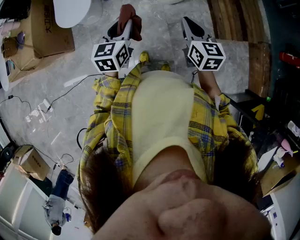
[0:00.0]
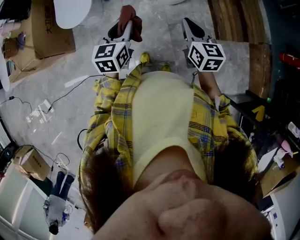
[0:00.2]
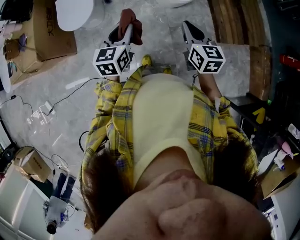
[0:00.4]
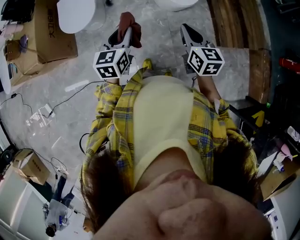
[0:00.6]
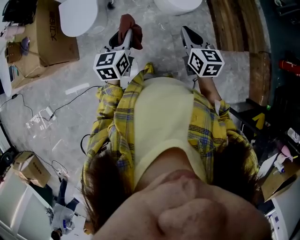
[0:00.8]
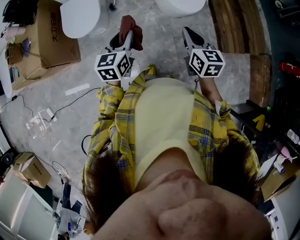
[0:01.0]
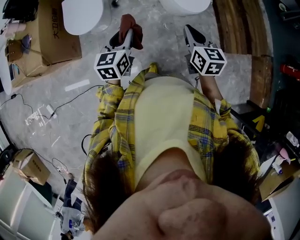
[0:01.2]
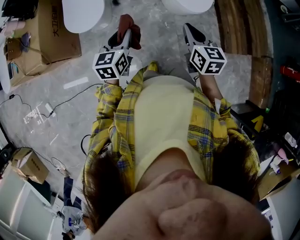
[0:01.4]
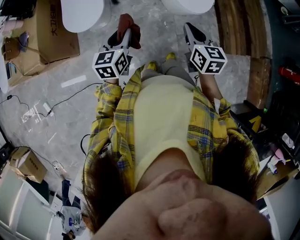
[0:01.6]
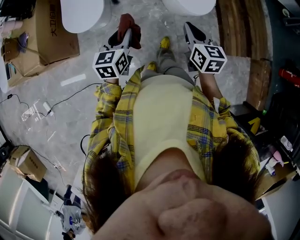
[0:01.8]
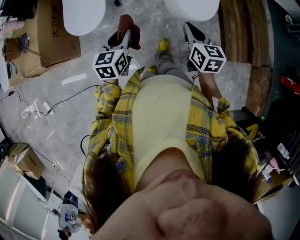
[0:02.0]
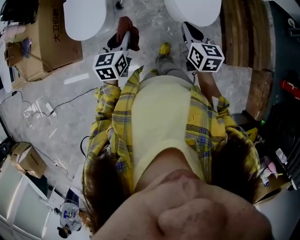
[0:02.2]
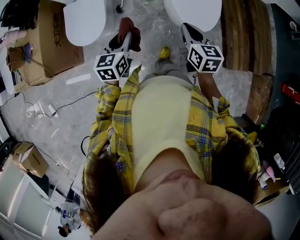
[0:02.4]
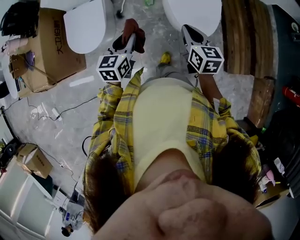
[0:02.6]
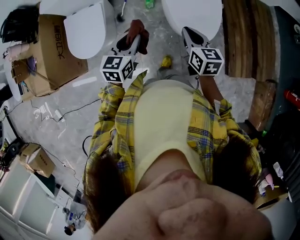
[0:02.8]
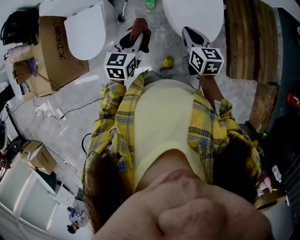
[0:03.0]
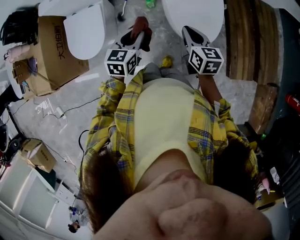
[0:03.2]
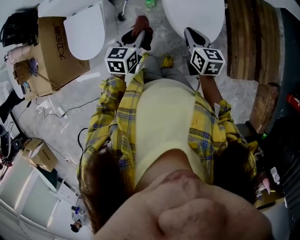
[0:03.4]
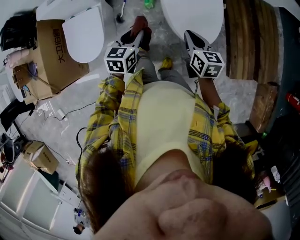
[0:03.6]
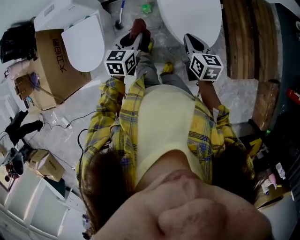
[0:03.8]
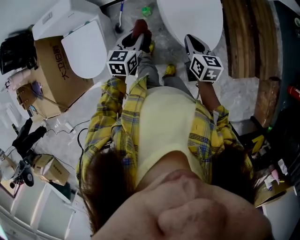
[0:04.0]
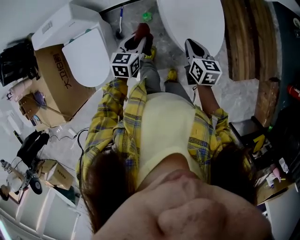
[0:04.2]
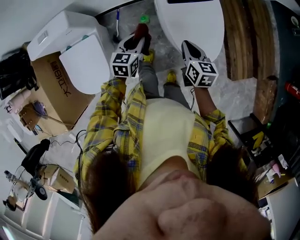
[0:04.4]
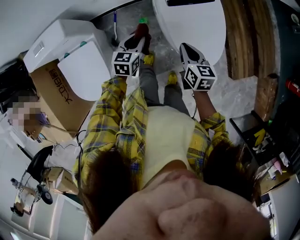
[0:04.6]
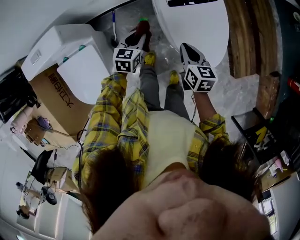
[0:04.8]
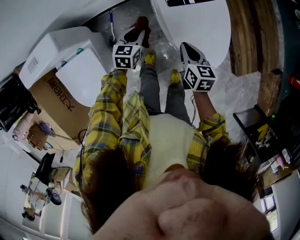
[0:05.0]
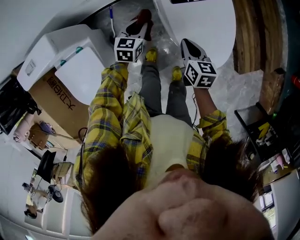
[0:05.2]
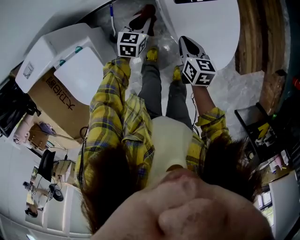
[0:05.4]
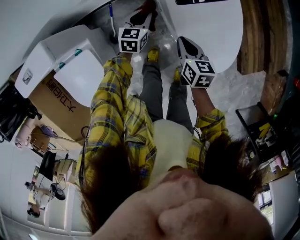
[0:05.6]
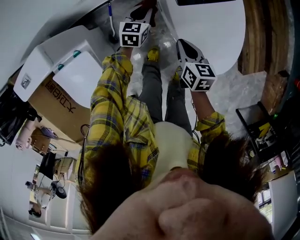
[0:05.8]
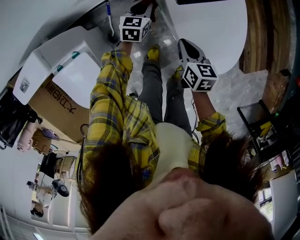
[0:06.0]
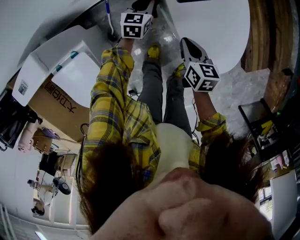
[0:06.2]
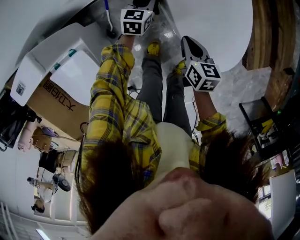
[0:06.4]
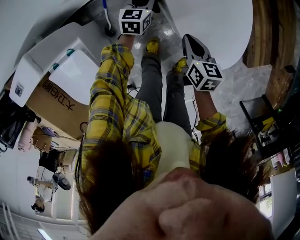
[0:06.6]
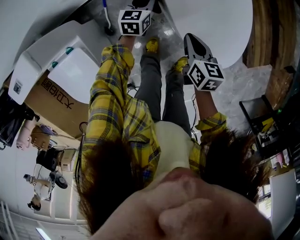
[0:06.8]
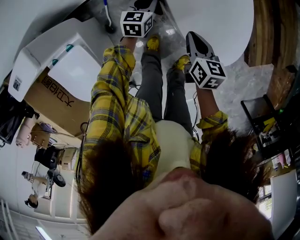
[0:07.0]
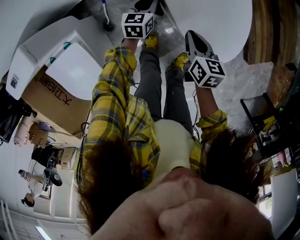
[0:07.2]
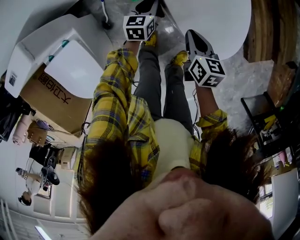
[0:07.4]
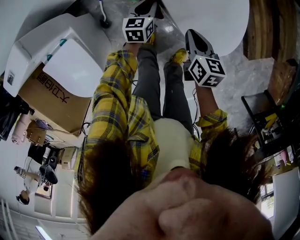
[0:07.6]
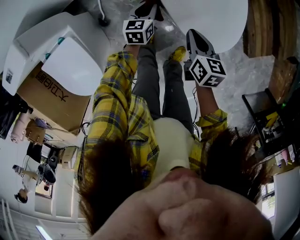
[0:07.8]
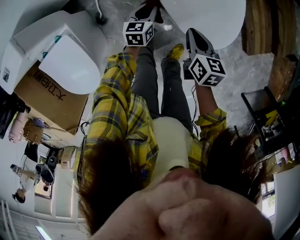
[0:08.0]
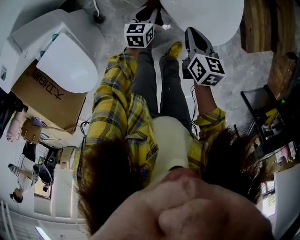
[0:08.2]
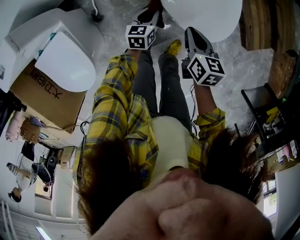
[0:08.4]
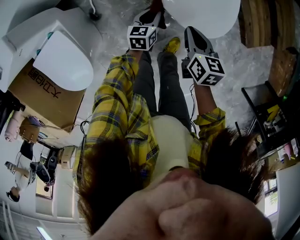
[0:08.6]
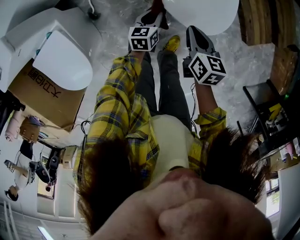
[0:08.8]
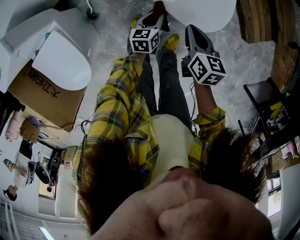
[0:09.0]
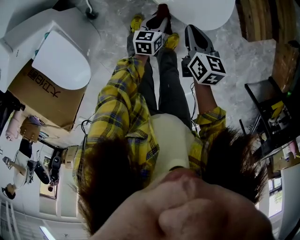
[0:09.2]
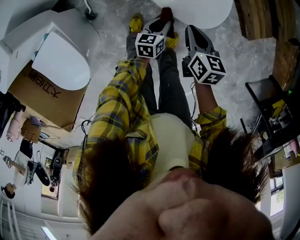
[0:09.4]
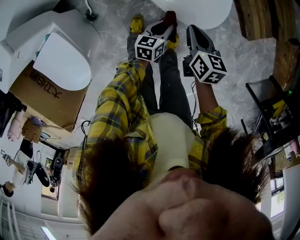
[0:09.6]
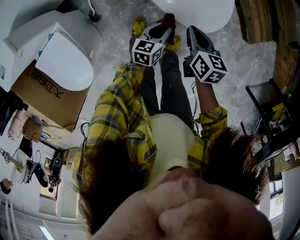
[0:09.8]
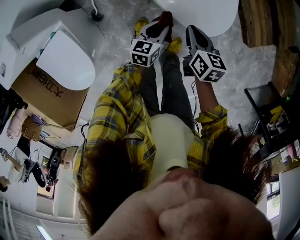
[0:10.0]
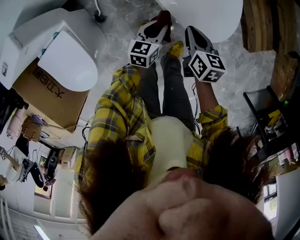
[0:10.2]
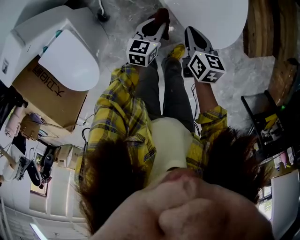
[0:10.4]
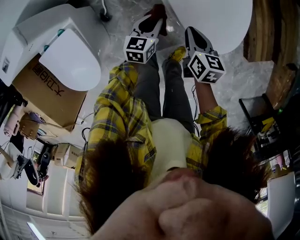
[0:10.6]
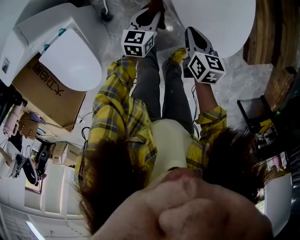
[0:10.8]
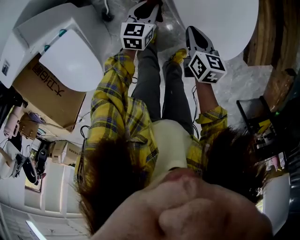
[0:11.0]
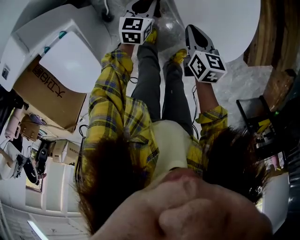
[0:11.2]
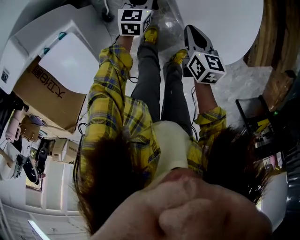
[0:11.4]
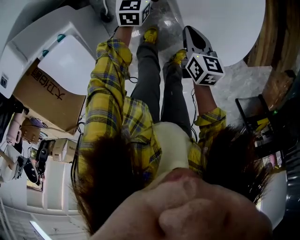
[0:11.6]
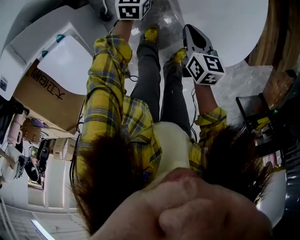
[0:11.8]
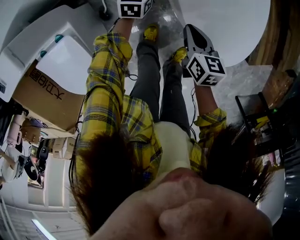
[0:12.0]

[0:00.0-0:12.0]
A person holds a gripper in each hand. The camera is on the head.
0:00.0 to 0:01.6: The left gripper travels to the left and forward by about 15 cm, while the right gripper shifts about 15 cm forward and to the left.
0:01.6 to 0:03.0: The right gripper moves forward, about 25 cm. The left gripper is displaced forward and to the right by approximately 25 cm.
0:03.0 to 0:04.4: The right gripper travels forward and downward by roughly 15 cm, while the left gripper shifts roughly 20 cm forward and downward.
0:04.4 to 0:06.0: The right gripper shifts roughly 20 cm downward and forward. Meanwhile the left gripper moves forward and downward, roughly 30 cm.
0:06.0 to 0:07.6: The right gripper travels to the right and backward by approximately 10 cm. Meanwhile the left gripper goes about 15 cm backward and to the right.
0:07.6 to 0:09.0: The right gripper travels backward and to the right by about 10 cm. Meanwhile the left gripper heads backward and to the right, covering roughly 20 cm.
0:09.0 to 0:10.4: The right gripper is displaced to the left by approximately 5 cm; the left gripper goes approximately 10 cm to the left and upward.
0:10.4 to 0:12.0: The right gripper travels forward and to the left by approximately 10 cm; the left gripper travels forward and to the left by about 25 cm.

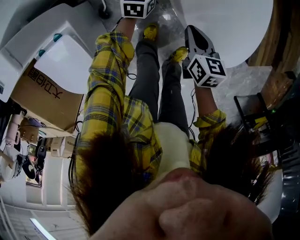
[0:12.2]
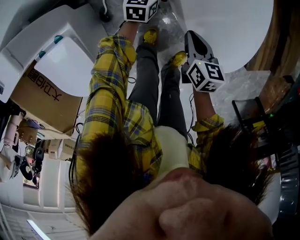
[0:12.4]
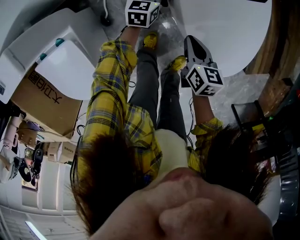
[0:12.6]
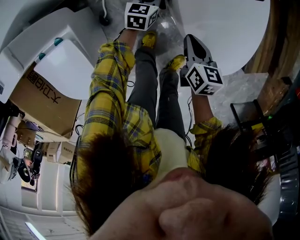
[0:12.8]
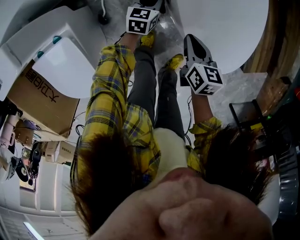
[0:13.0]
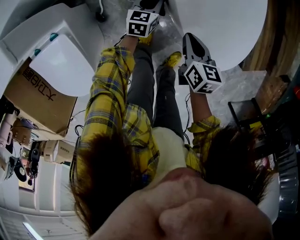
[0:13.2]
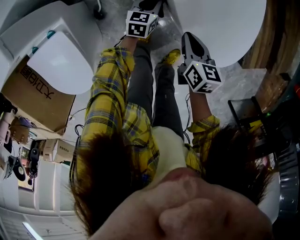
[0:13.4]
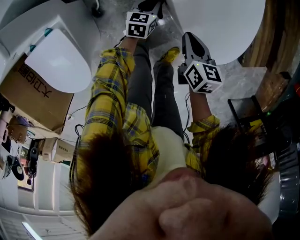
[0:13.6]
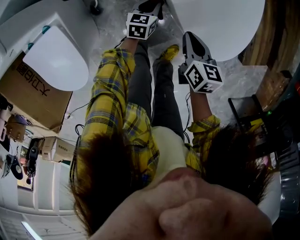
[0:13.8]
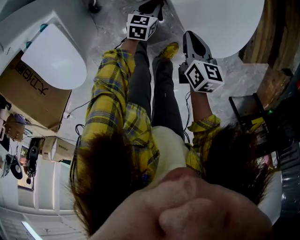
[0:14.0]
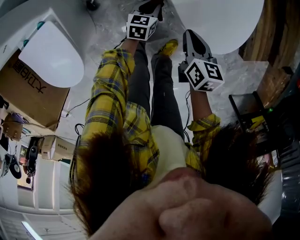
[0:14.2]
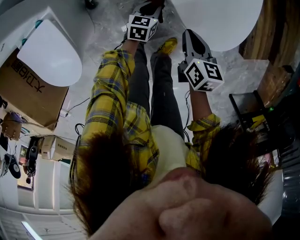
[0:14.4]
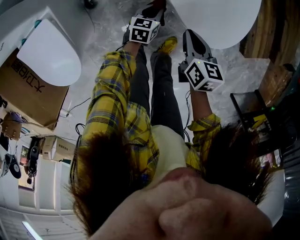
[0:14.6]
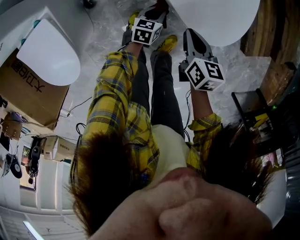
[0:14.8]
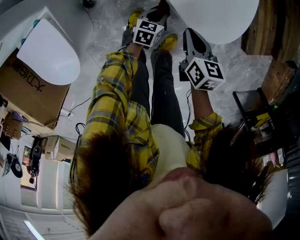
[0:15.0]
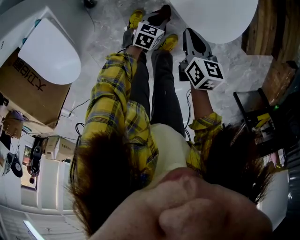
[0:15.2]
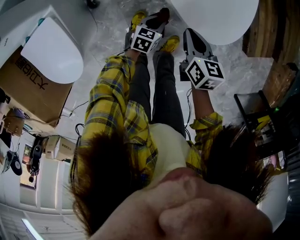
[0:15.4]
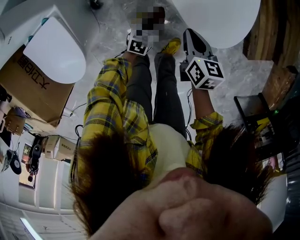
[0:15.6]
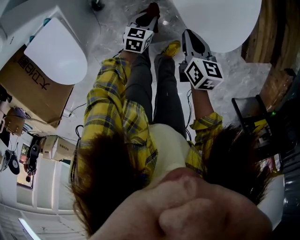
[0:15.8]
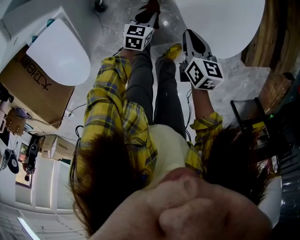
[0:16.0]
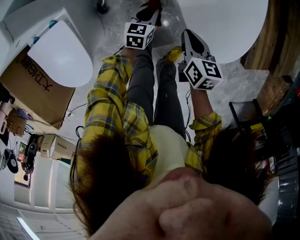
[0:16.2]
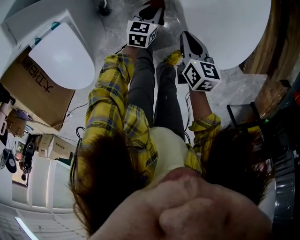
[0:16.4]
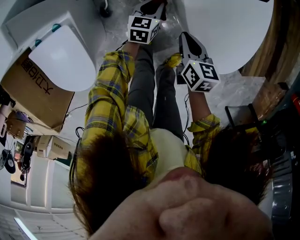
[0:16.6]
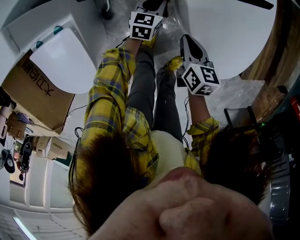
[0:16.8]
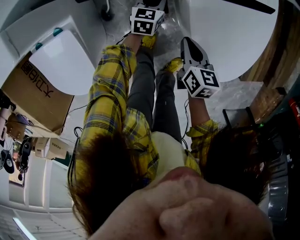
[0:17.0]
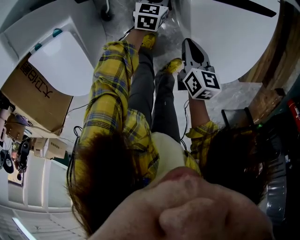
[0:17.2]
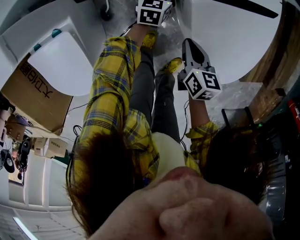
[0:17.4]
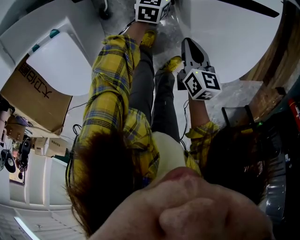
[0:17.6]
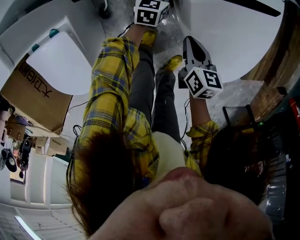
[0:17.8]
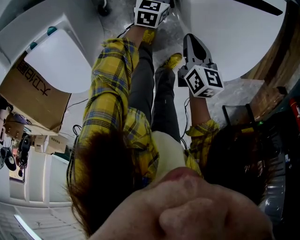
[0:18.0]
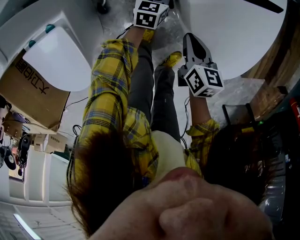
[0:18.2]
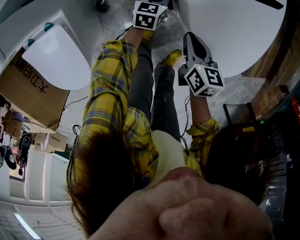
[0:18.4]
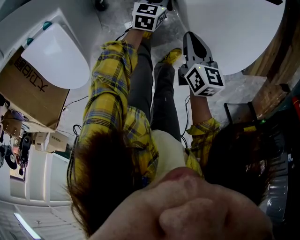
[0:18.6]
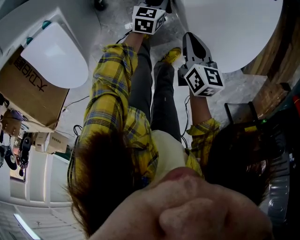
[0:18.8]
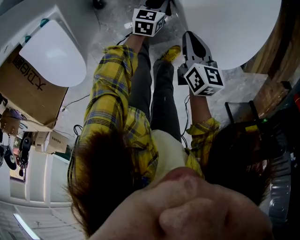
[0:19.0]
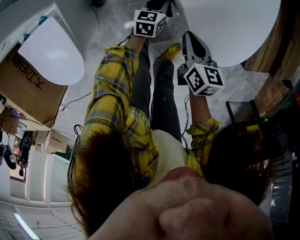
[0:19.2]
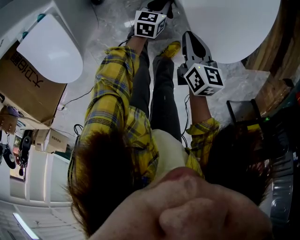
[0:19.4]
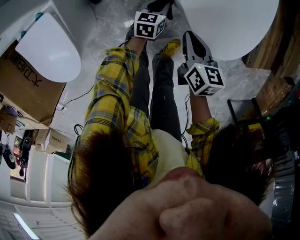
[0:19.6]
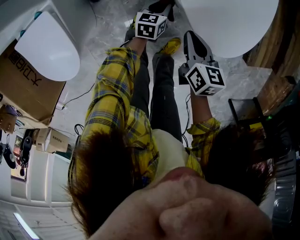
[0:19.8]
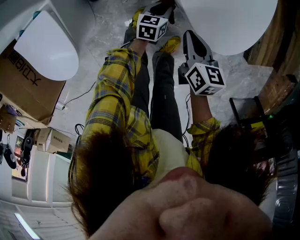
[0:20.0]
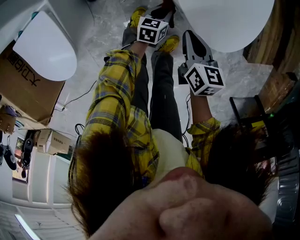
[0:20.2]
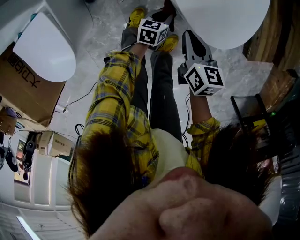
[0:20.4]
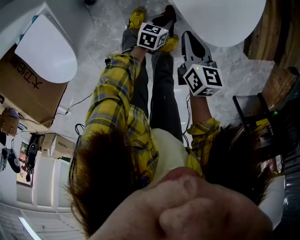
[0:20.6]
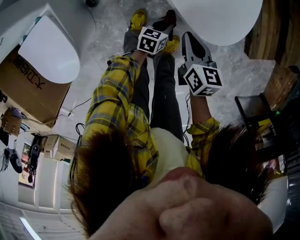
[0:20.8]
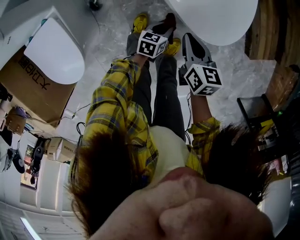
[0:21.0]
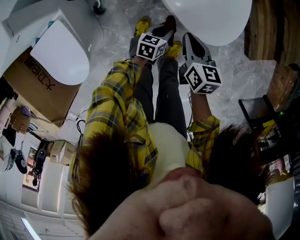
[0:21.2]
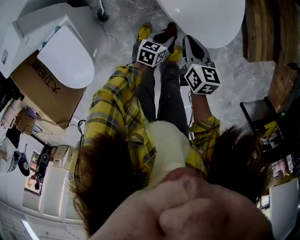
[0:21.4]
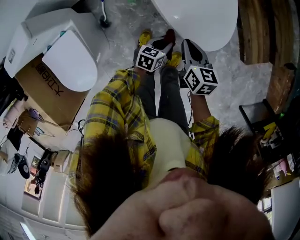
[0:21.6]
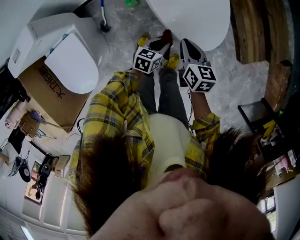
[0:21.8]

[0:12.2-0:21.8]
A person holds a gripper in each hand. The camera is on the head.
0:12.2 to 0:13.8: The right gripper is displaced backward and to the right by approximately 10 cm. The left gripper goes about 15 cm backward.
0:13.8 to 0:15.4: The left gripper travels backward and to the right by approximately 20 cm. The right gripper goes about 5 cm backward.
0:15.4 to 0:17.0: The right gripper is displaced forward and to the left by some 15 cm. The left gripper goes some 30 cm forward and to the left, and rotates about 20 degrees.
0:17.0 to 0:18.6: The left gripper ends up approximately 5 cm from where it was.
0:18.6 to 0:20.2: The right gripper goes about 10 cm backward and to the right, while the left gripper moves backward and to the right, roughly 20 cm.
0:20.2 to 0:21.8: The two grippers go approximately 15 cm upward.

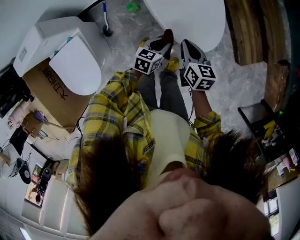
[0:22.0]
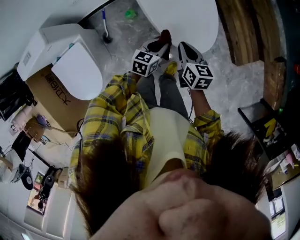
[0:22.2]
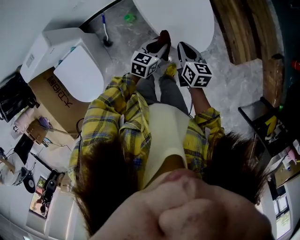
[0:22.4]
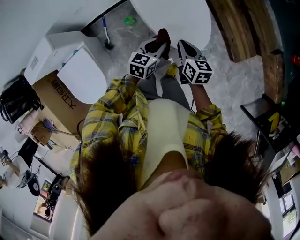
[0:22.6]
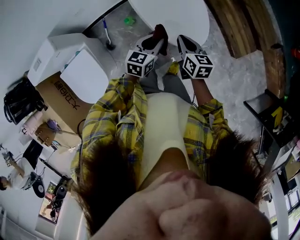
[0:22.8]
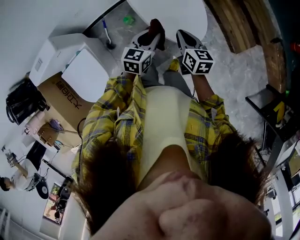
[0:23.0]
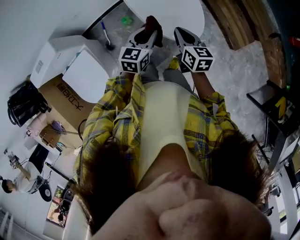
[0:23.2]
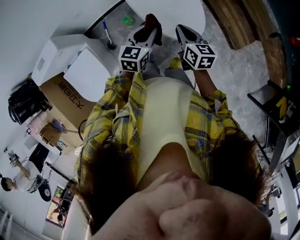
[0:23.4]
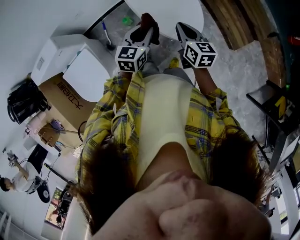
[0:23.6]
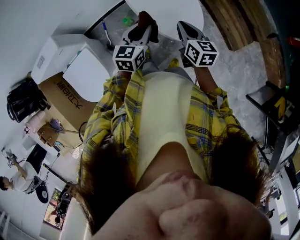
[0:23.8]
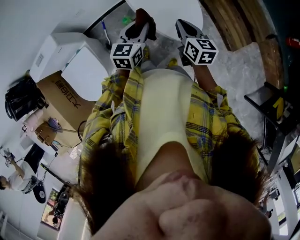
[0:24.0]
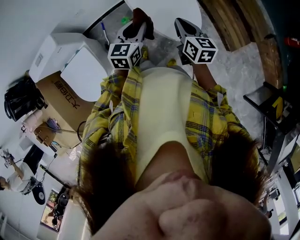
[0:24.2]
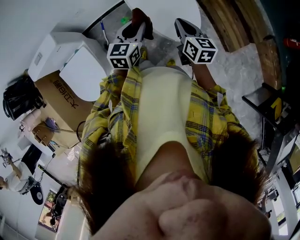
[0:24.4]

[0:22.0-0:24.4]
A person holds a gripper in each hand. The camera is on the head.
0:22.0 to 0:23.2: The left gripper goes roughly 20 cm upward. Meanwhile the right gripper is displaced upward by some 10 cm.
0:23.2 to 0:24.4: Both grippers travel together upward, roughly 5 cm.
